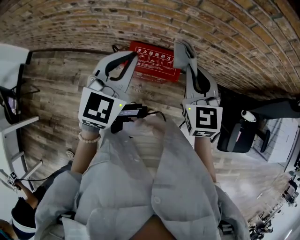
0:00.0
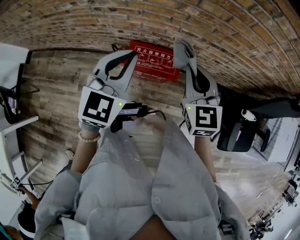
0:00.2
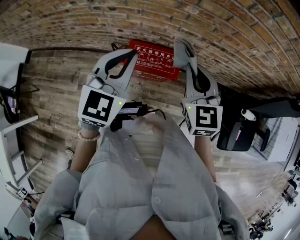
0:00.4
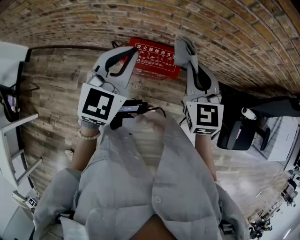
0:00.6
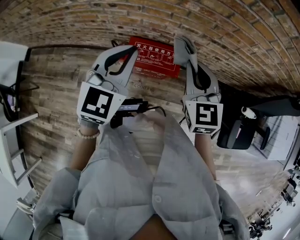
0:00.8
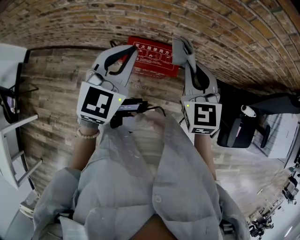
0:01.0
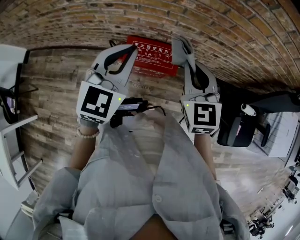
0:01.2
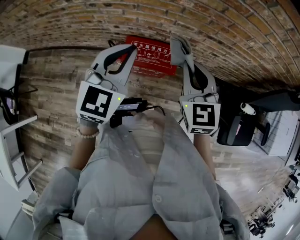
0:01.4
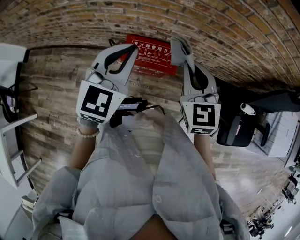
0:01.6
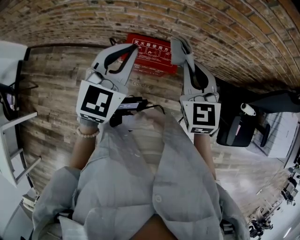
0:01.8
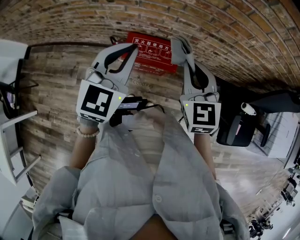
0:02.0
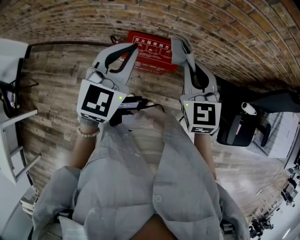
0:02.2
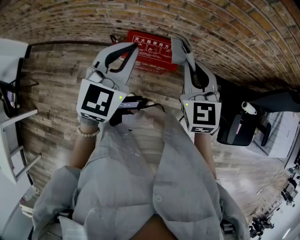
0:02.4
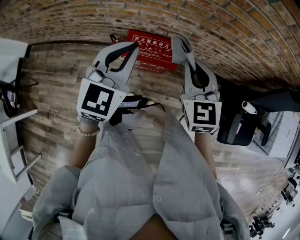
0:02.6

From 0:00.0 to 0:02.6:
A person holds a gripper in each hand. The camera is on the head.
From 0:00.0 to 0:01.2: Both grippers stay about where they are.
From 0:01.2 to 0:02.6: The grippers make only small movements.

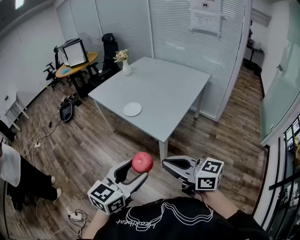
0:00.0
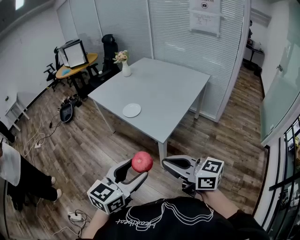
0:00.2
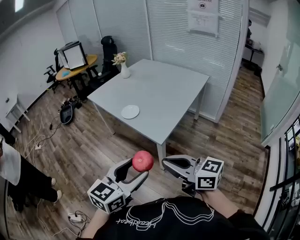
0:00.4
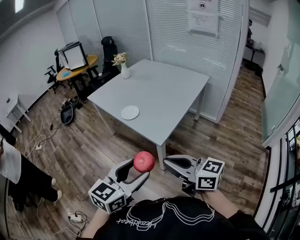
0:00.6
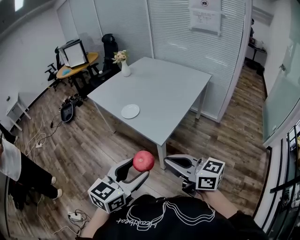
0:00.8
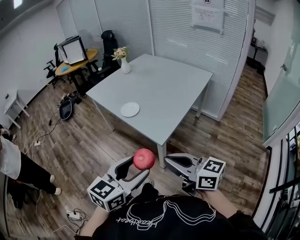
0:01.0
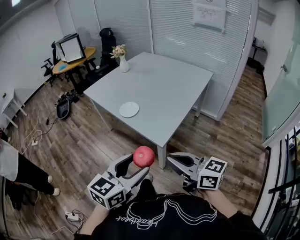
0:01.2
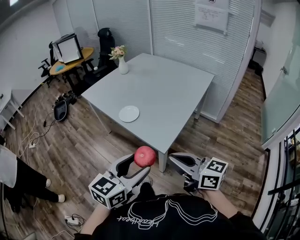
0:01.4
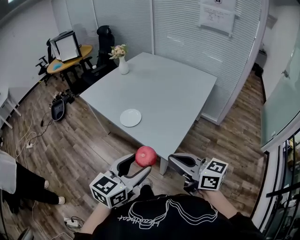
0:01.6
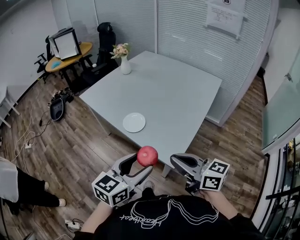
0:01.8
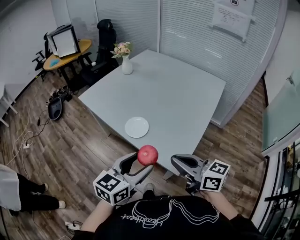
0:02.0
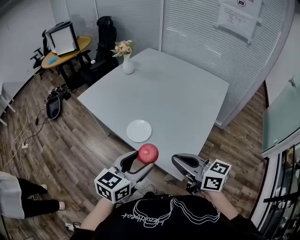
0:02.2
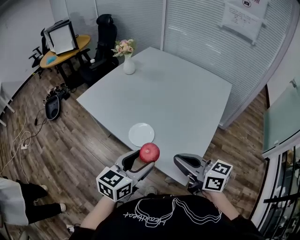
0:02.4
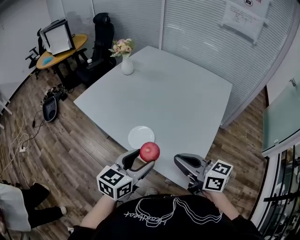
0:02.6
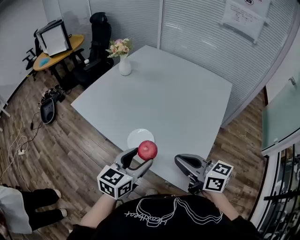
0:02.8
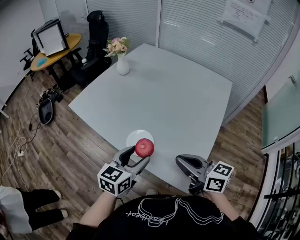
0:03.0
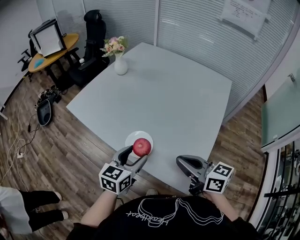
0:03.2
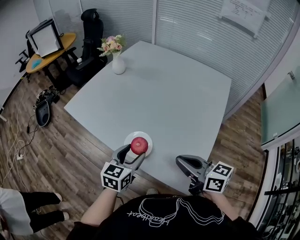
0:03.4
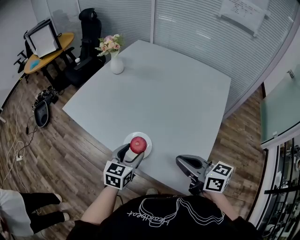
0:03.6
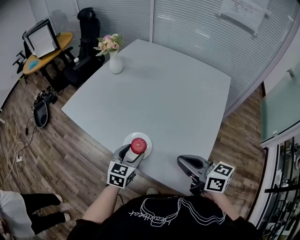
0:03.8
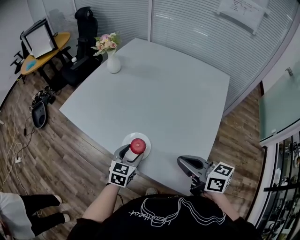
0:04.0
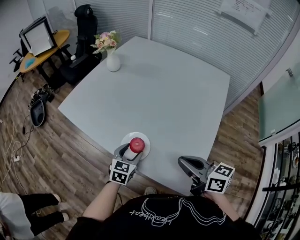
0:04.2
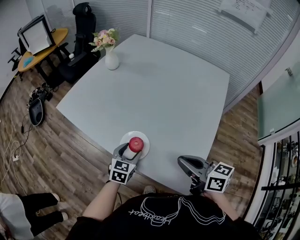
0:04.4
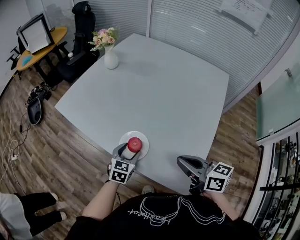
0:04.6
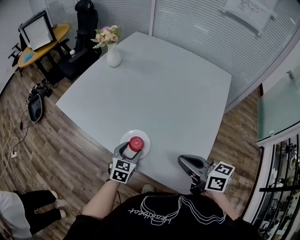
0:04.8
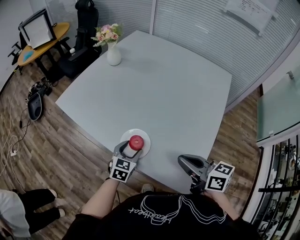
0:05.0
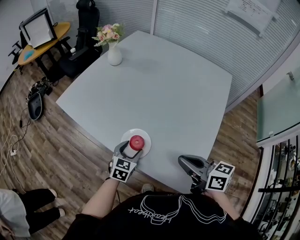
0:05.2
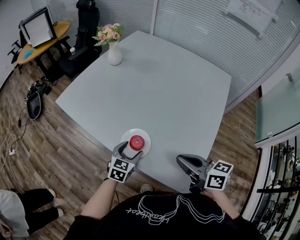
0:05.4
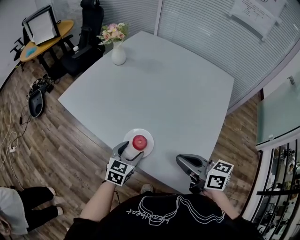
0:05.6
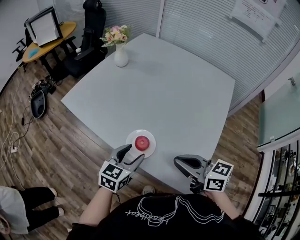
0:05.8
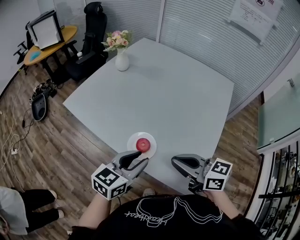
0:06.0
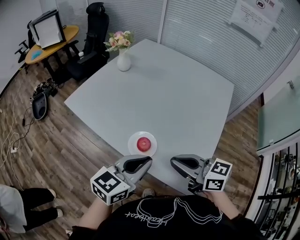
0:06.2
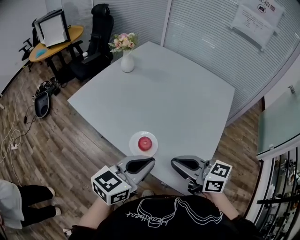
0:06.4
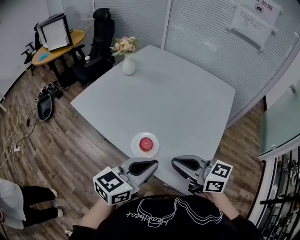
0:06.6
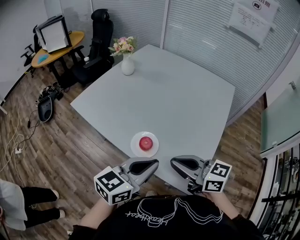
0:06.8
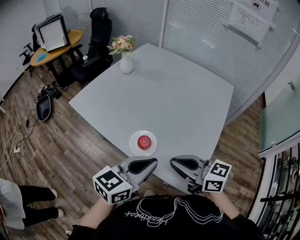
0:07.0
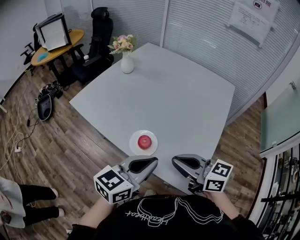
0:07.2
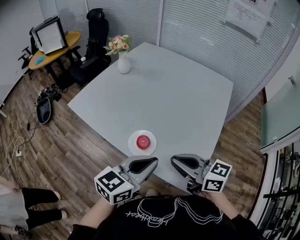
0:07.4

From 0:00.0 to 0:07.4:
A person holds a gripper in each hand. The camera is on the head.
From 0:00.0 to 0:01.4: Both grippers travel together forward, about 15 cm.
From 0:01.4 to 0:03.0: Both grippers move forward, roughly 35 cm.
From 0:03.0 to 0:04.4: The left gripper goes about 20 cm downward and forward. Meanwhile the right gripper shifts by roughly 5 cm.
From 0:04.4 to 0:06.0: The right gripper shifts approximately 5 cm to the left. The left gripper travels upward and backward by about 15 cm, changes its angle by some 20 degrees, and closes.
From 0:06.0 to 0:07.4: The left gripper shifts roughly 10 cm upward and backward, and closes.

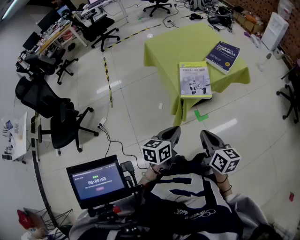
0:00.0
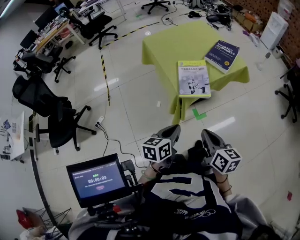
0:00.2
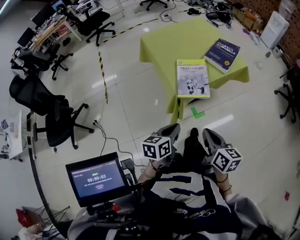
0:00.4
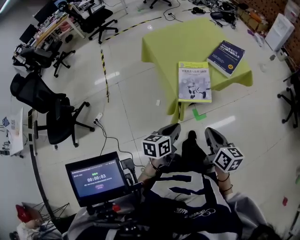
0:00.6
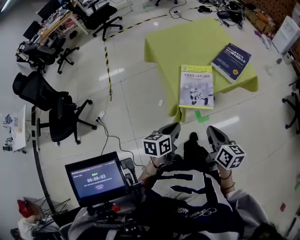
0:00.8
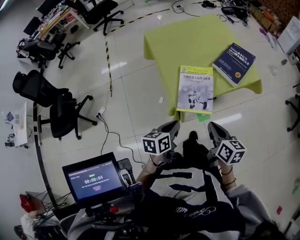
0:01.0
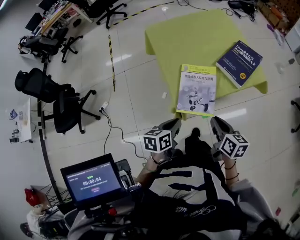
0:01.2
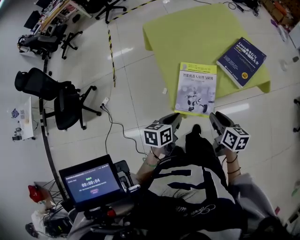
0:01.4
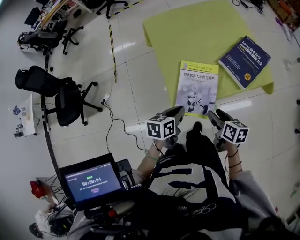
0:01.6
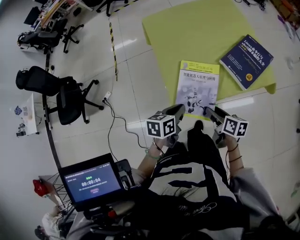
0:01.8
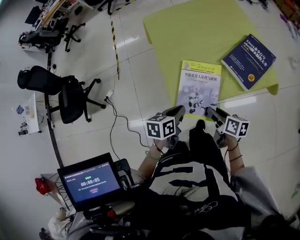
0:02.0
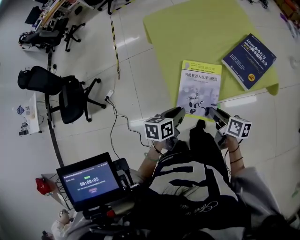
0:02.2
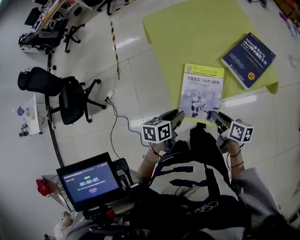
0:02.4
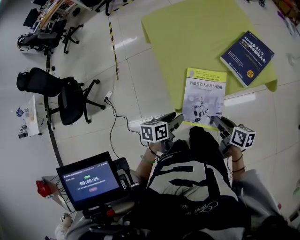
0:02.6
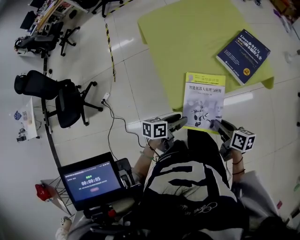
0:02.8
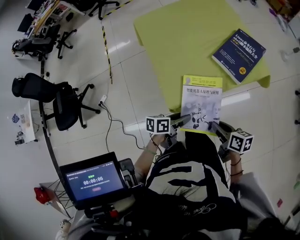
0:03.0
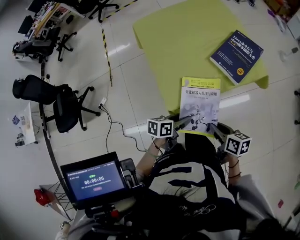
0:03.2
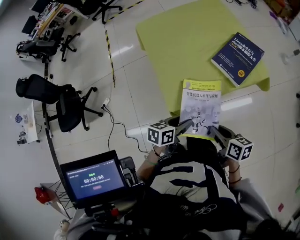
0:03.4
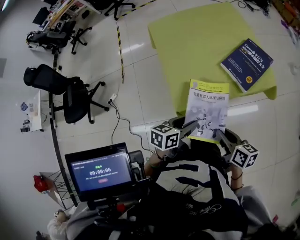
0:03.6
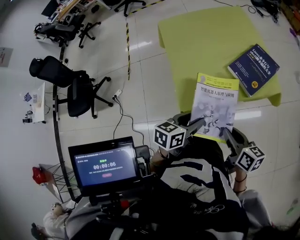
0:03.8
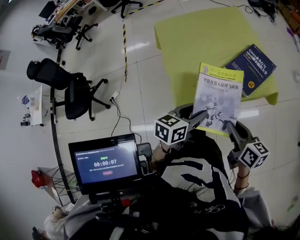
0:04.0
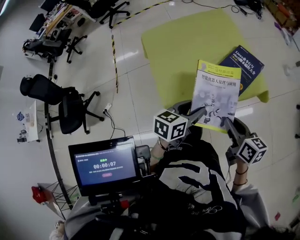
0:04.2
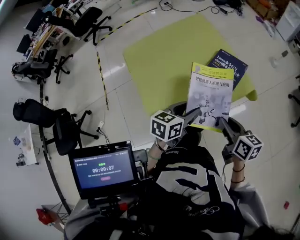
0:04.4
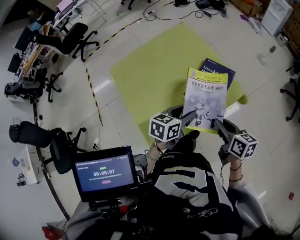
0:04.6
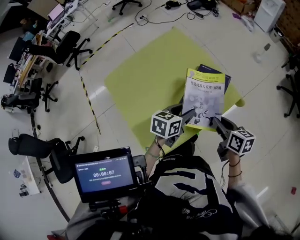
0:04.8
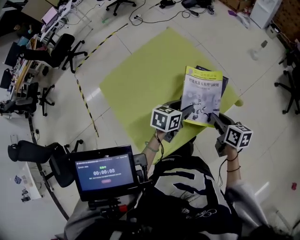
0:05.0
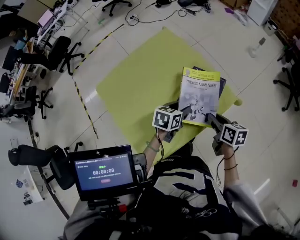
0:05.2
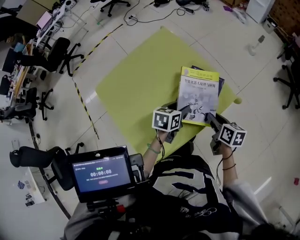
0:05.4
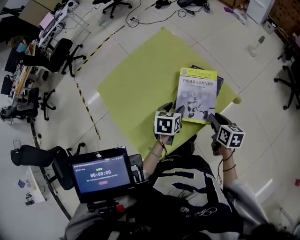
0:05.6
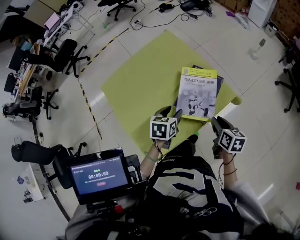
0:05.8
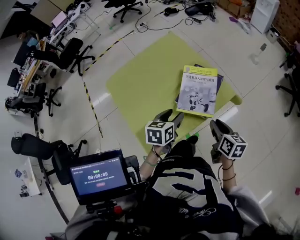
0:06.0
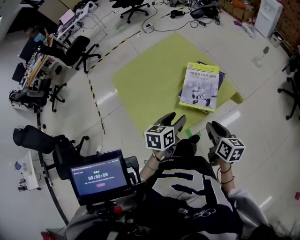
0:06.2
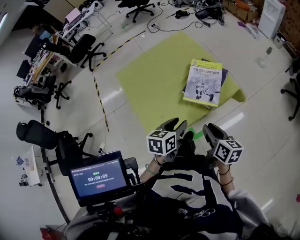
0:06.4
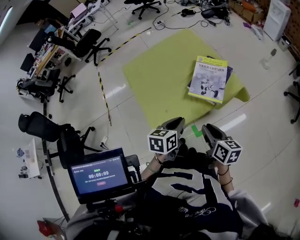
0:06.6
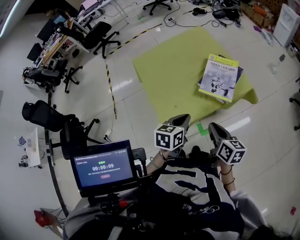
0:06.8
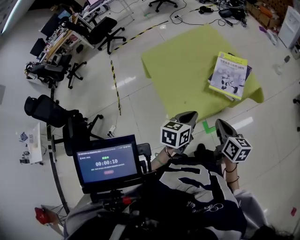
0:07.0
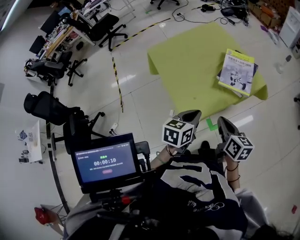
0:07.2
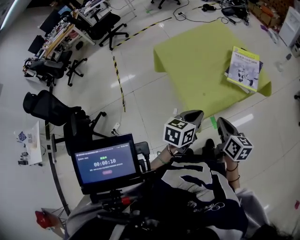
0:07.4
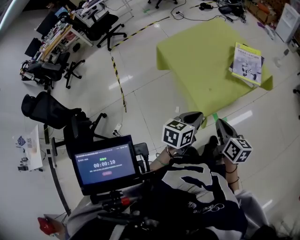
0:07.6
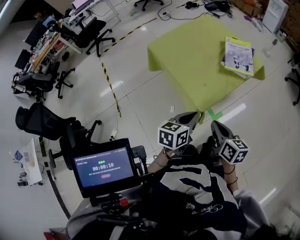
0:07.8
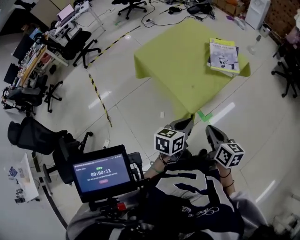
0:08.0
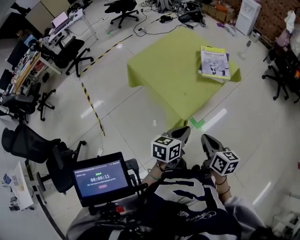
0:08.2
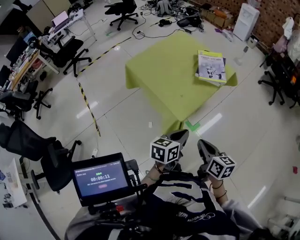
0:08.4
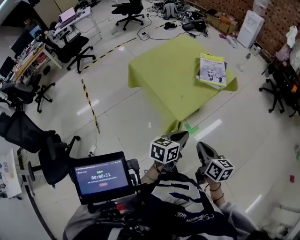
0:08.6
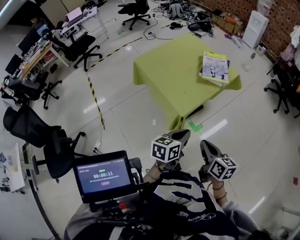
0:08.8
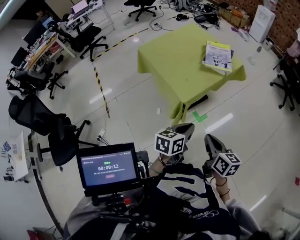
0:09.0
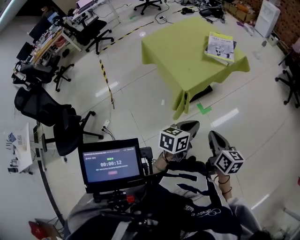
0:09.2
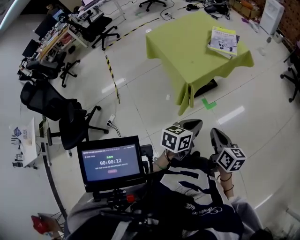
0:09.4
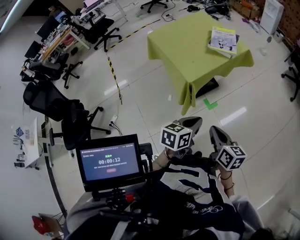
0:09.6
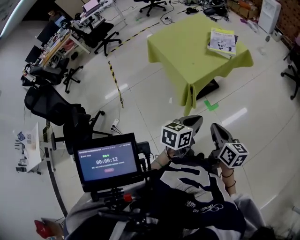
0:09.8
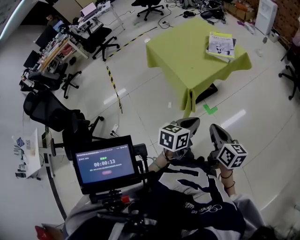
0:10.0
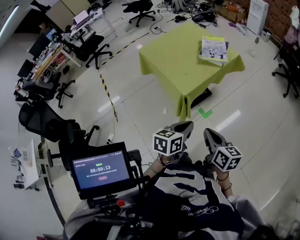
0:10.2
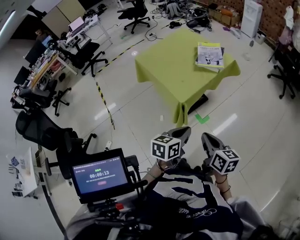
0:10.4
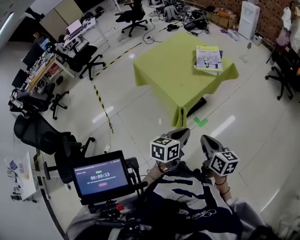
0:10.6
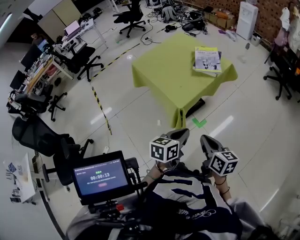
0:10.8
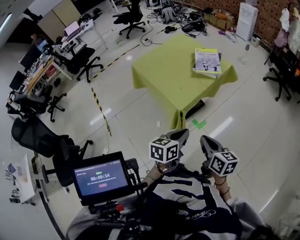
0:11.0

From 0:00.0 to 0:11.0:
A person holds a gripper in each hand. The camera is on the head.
From 0:00.0 to 0:01.6: Both grippers move forward and downward, some 30 cm. The right gripper rotates roughly 20 degrees, and opens.
From 0:01.6 to 0:03.2: The left gripper moves approximately 10 cm, and opens. The right gripper heads backward, covering roughly 5 cm, and closes.
From 0:03.2 to 0:04.8: The left gripper goes approximately 30 cm forward, to the right and upward, and rotates approximately 30 degrees, while the right gripper heads forward and to the right, covering approximately 25 cm, and swivels approximately 20 degrees.
From 0:04.8 to 0:06.2: The two grippers go approximately 10 cm backward.
From 0:06.2 to 0:07.8: The right gripper is displaced to the left and backward by approximately 35 cm, and closes its fingers; the left gripper is displaced backward and to the left by about 30 cm, and closes its fingers.
From 0:07.8 to 0:09.4: Both grippers travel together backward and to the right, roughly 25 cm.
From 0:09.4 to 0:11.0: Both grippers move to the left and forward, roughly 10 cm.

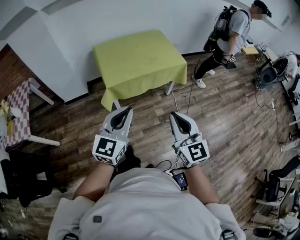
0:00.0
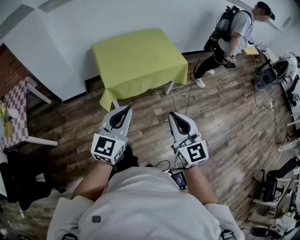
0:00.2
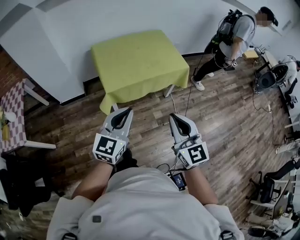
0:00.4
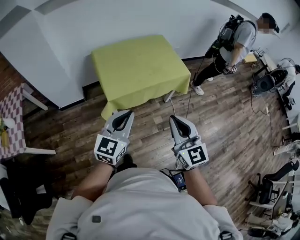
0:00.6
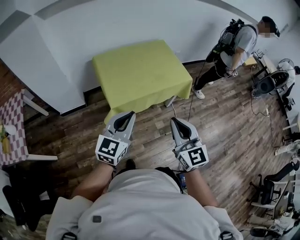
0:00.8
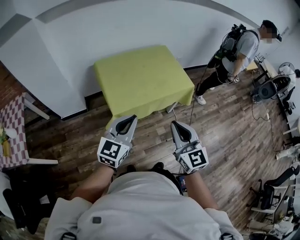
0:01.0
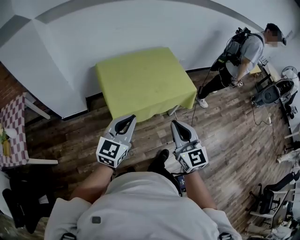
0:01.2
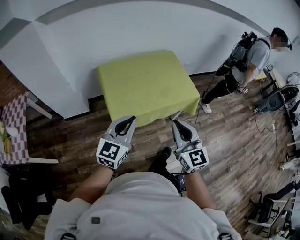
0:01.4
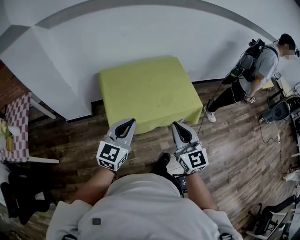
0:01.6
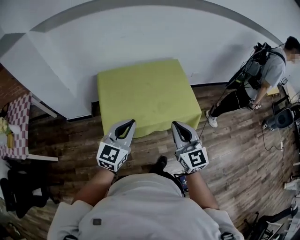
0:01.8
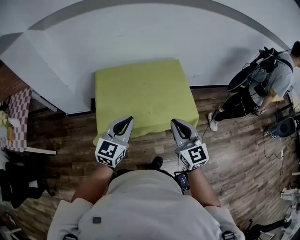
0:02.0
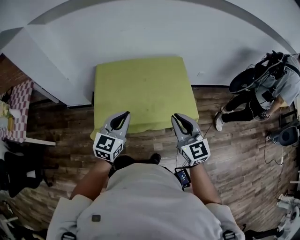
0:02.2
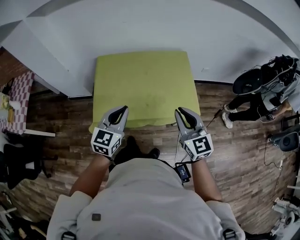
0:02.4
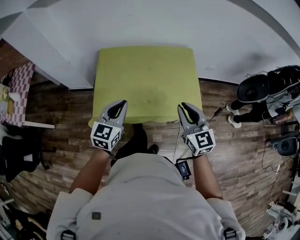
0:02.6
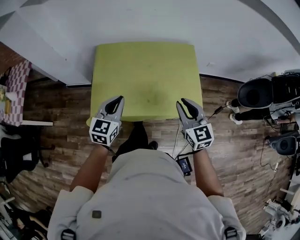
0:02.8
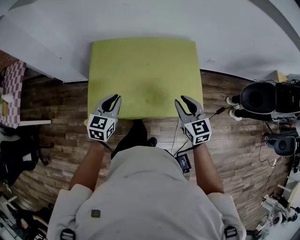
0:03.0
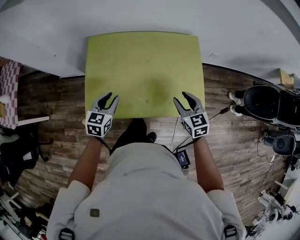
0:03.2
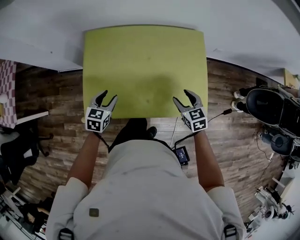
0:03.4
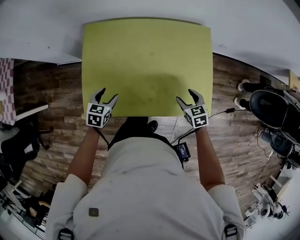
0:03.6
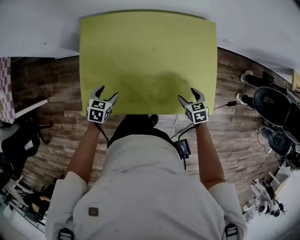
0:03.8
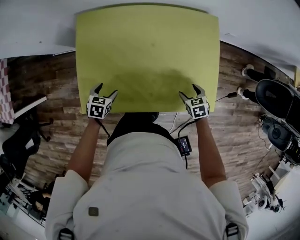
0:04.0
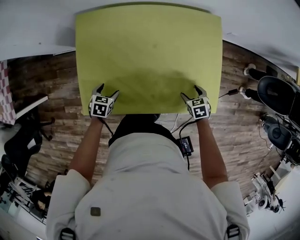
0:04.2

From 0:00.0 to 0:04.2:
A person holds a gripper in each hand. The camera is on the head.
From 0:00.0 to 0:01.4: Both grippers travel together forward, about 25 cm.
From 0:01.4 to 0:02.8: The left gripper moves forward, to the right and downward, about 30 cm, and rotates approximately 30 degrees; the right gripper moves forward and to the right, approximately 35 cm, and turns by roughly 20 degrees.
From 0:02.8 to 0:04.2: The grippers both shift downward by some 35 cm. The right gripper points its fingers roughly 50 degrees further downward, and opens. The left gripper angles its fingers downward, by some 50 degrees, and opens.
